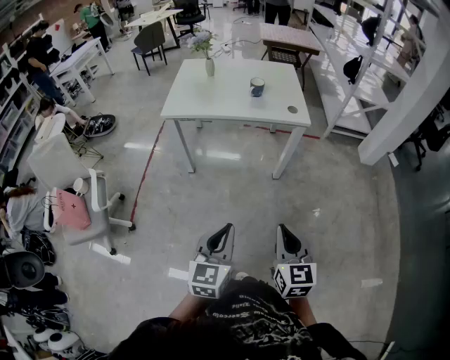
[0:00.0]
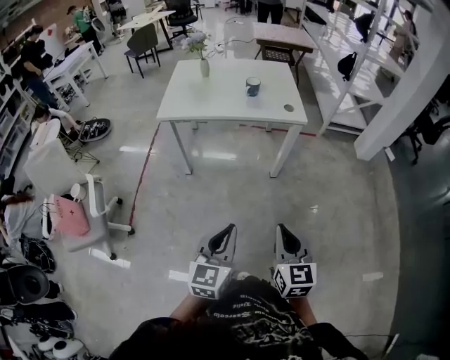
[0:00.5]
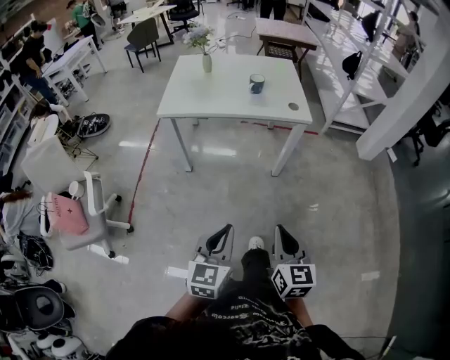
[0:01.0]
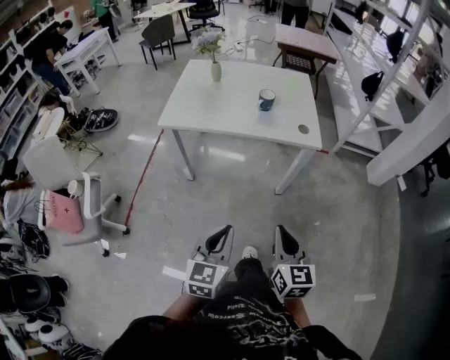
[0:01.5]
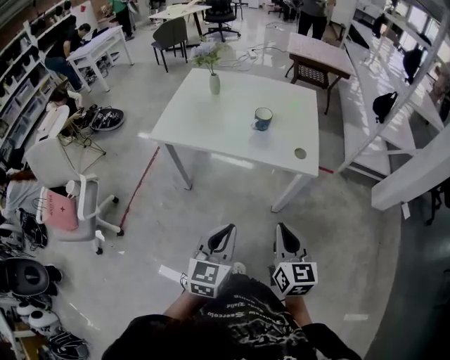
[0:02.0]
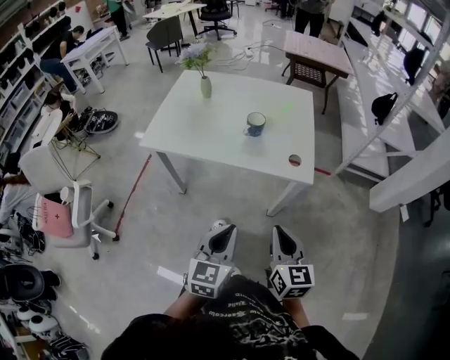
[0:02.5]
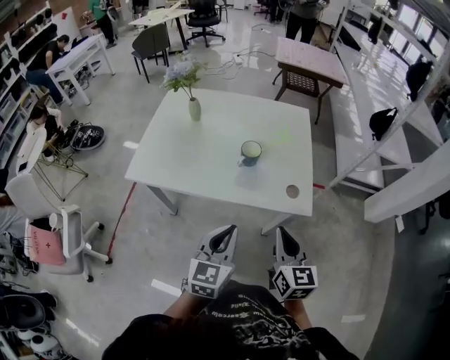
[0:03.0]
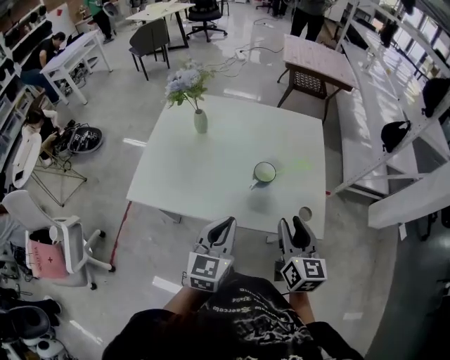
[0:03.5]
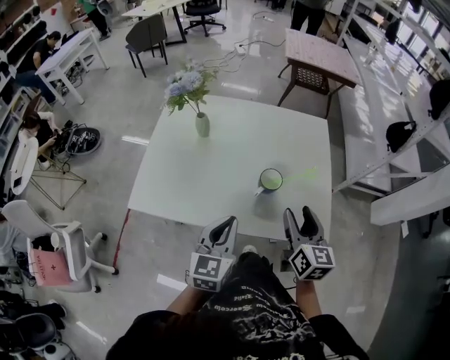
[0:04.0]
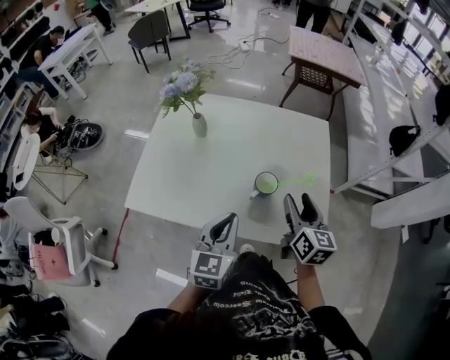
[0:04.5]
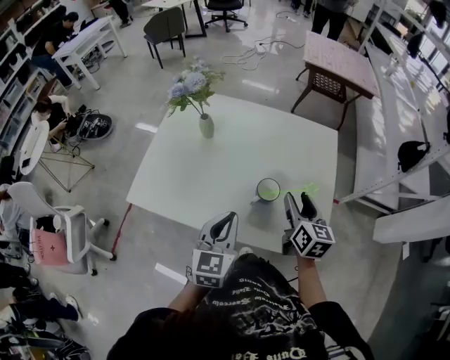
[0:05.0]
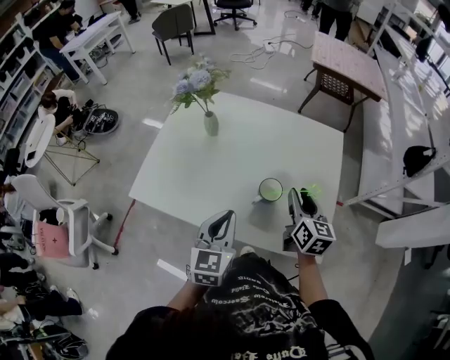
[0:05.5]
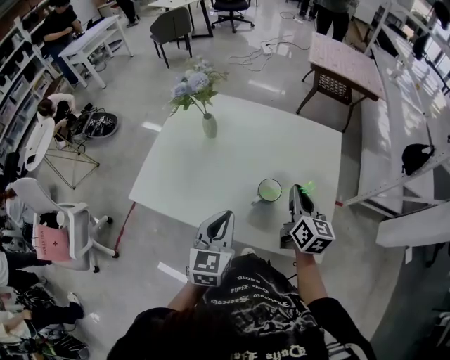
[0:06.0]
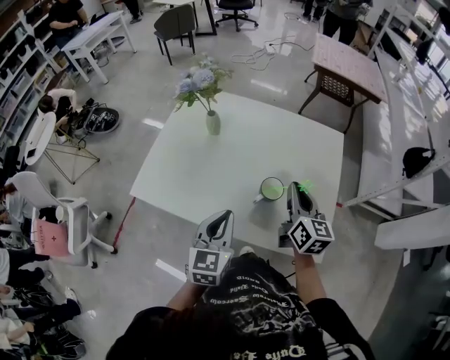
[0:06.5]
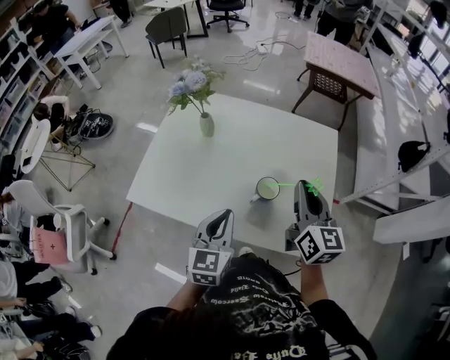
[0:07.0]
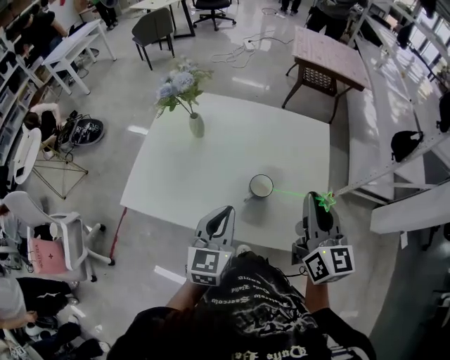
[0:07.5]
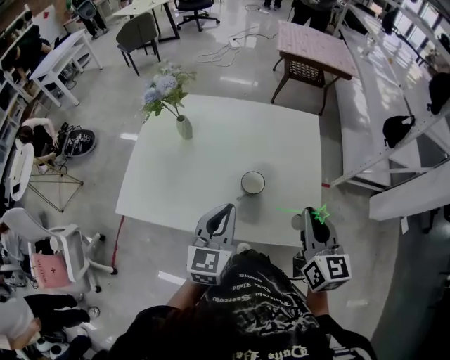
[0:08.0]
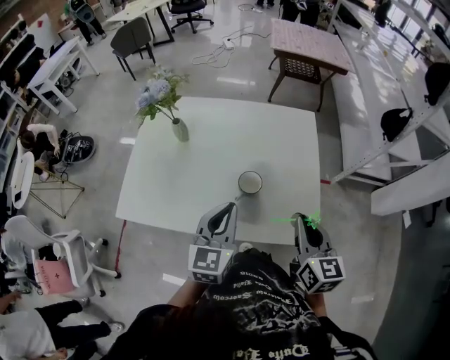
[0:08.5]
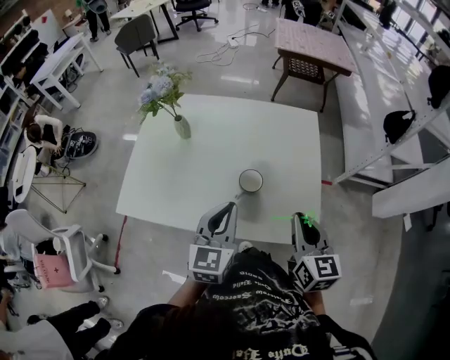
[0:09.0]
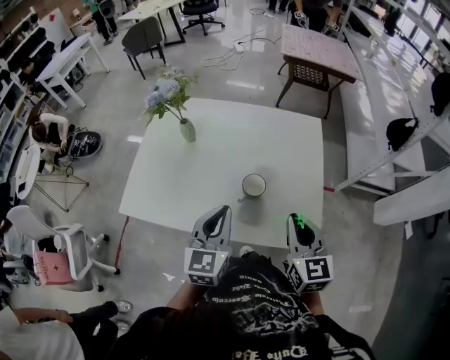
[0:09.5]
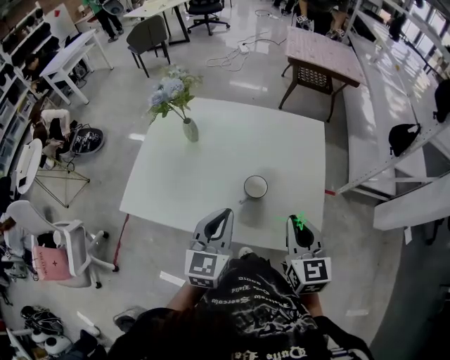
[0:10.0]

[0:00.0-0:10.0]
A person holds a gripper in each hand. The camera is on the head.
0:00.0 to 0:02.0: The pair of grippers is taken forward, some 50 cm.
0:02.0 to 0:04.0: The pair of grippers is taken forward, approximately 60 cm. The right gripper opens.
0:04.0 to 0:06.0: The right gripper shifts roughly 15 cm forward, and closes its fingers. The left gripper travels forward by roughly 5 cm.
0:06.0 to 0:08.0: The right gripper travels backward and upward by approximately 15 cm.
0:08.0 to 0:10.0: There are only small adjustments of the grippers.

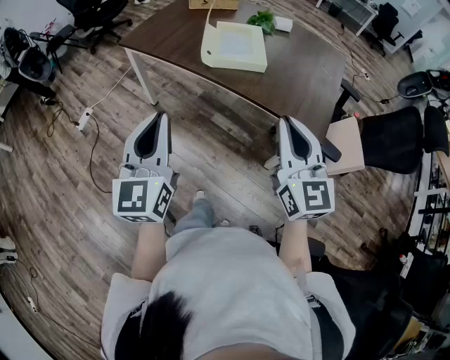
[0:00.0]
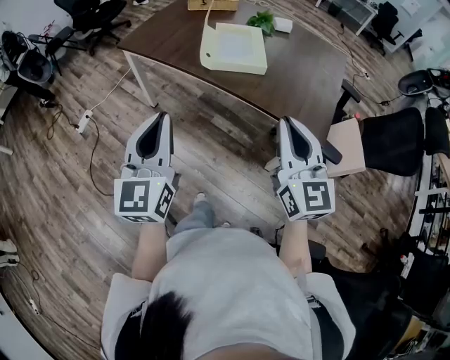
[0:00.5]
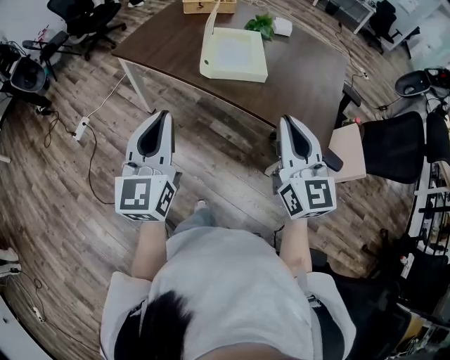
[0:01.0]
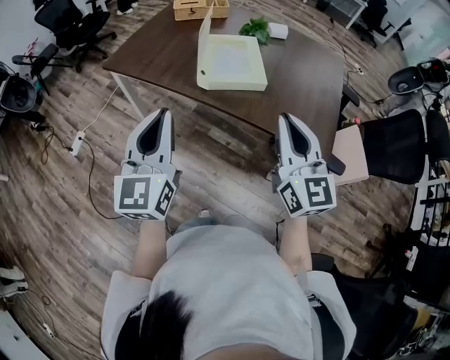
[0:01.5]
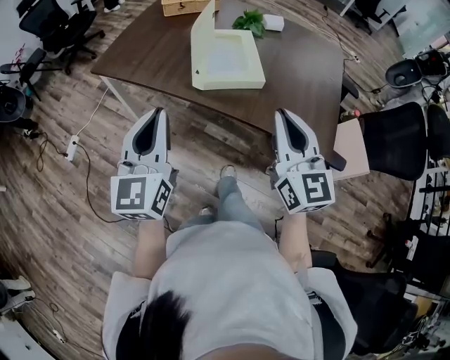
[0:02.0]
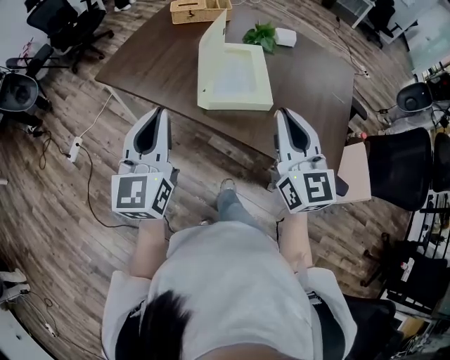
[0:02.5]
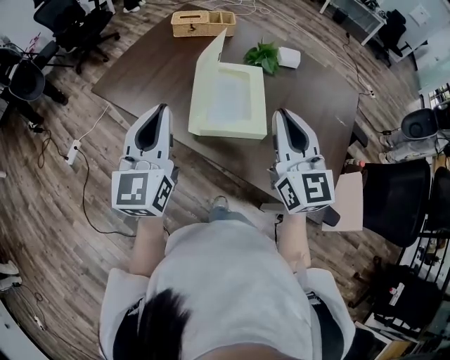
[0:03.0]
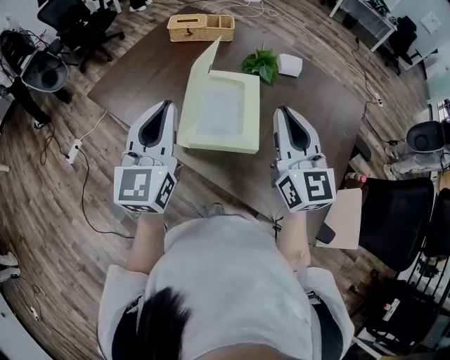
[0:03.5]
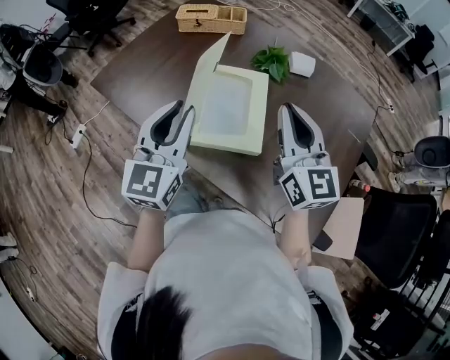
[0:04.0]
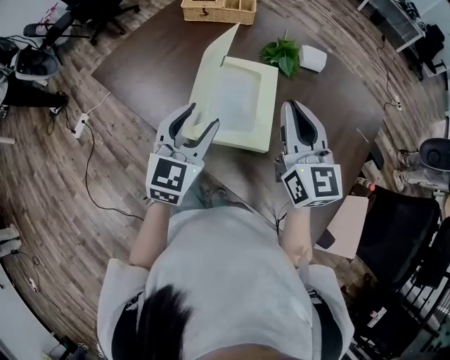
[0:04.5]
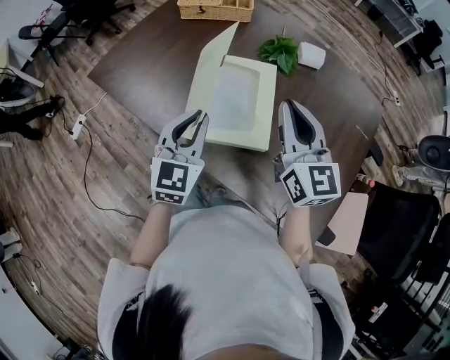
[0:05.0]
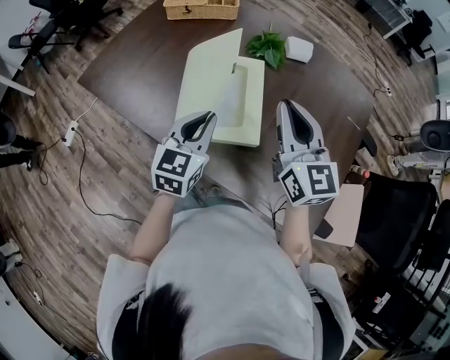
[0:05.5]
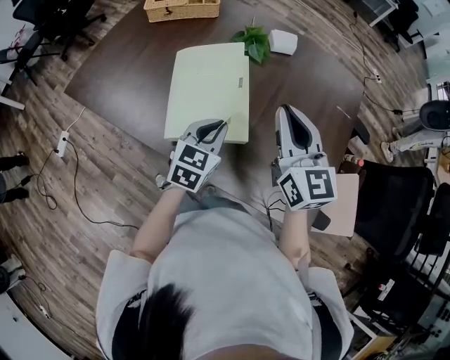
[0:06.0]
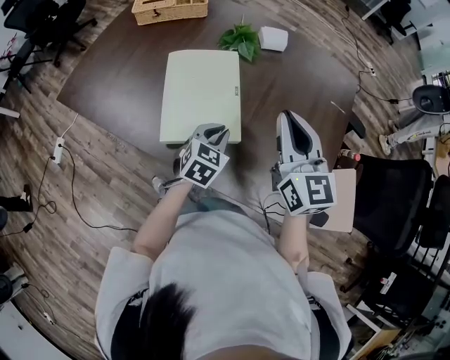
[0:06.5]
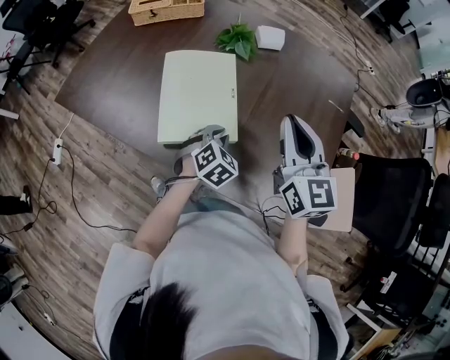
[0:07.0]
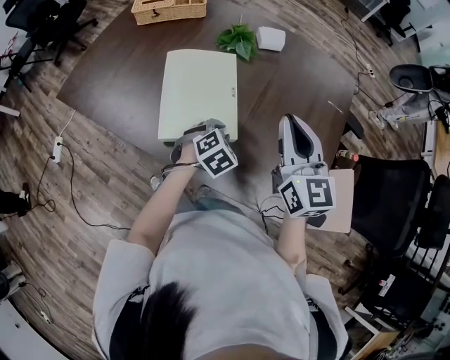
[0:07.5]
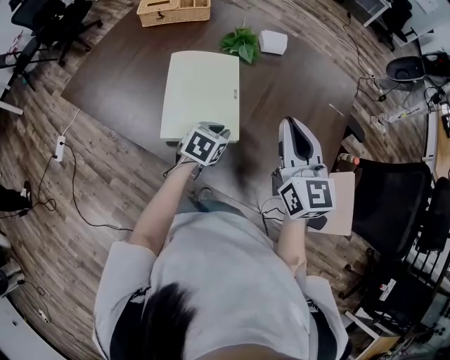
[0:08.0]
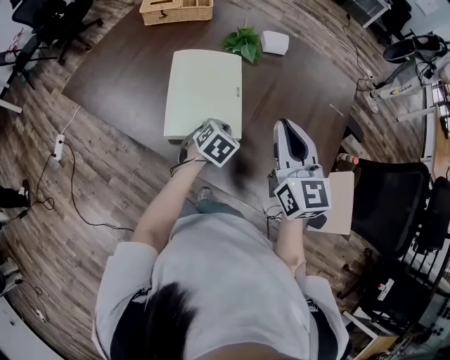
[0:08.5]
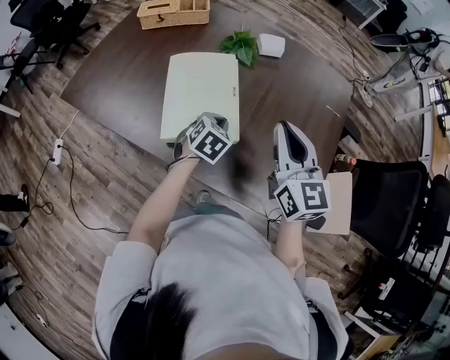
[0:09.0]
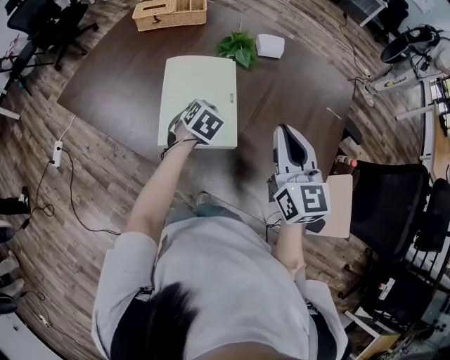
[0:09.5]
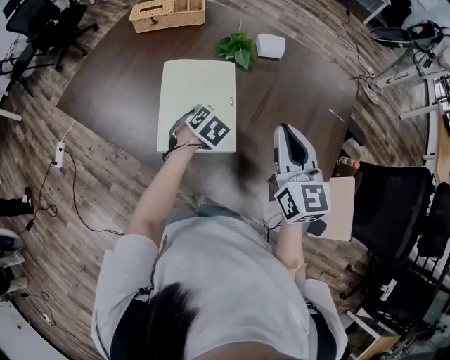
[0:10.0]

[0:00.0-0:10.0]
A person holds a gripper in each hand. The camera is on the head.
0:00.0 to 0:02.0: The two grippers go about 20 cm forward.
0:02.0 to 0:04.0: The right gripper heads forward, covering some 30 cm. Meanwhile the left gripper travels forward and to the right by some 30 cm.
0:04.0 to 0:06.0: The right gripper ends up roughly 5 cm from where it was. The left gripper heads downward and to the right, covering about 20 cm, turns by approximately 30 degrees, and opens and closes again.
0:06.0 to 0:08.0: The right gripper goes some 5 cm to the right, while the left gripper shifts about 10 cm downward, and turns by some 20 degrees.
0:08.0 to 0:10.0: The left gripper is displaced forward by about 10 cm, and turns by roughly 30 degrees.

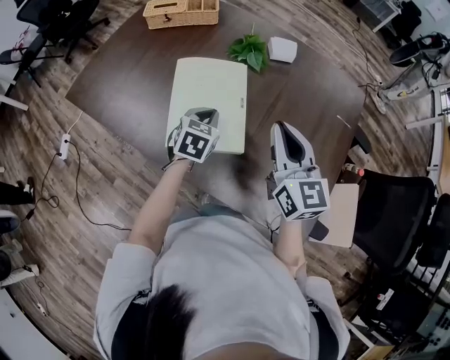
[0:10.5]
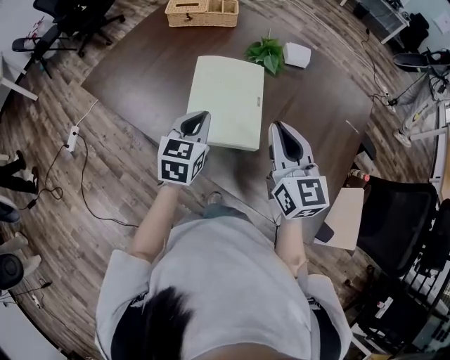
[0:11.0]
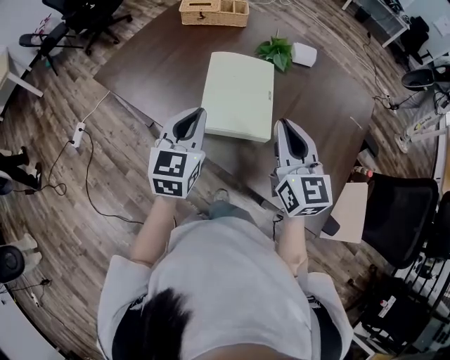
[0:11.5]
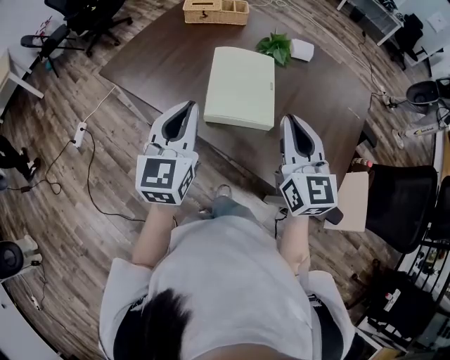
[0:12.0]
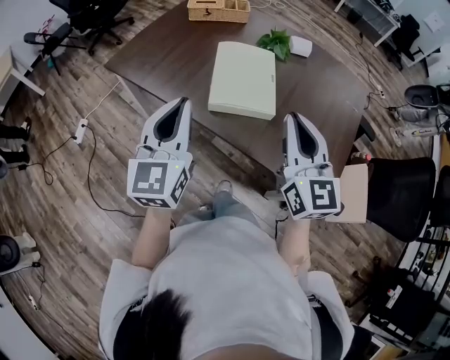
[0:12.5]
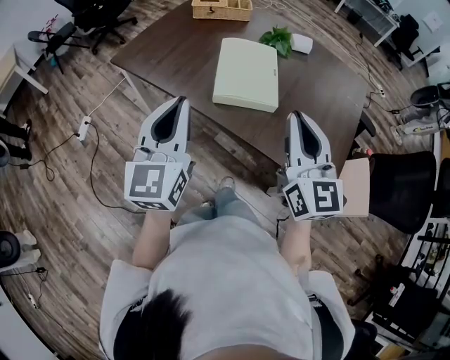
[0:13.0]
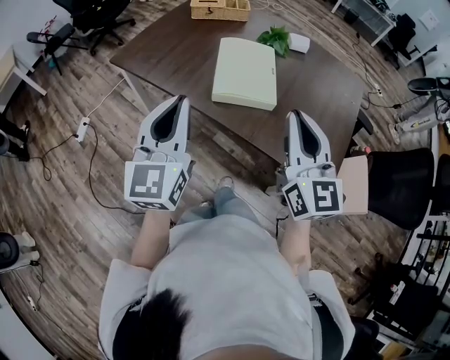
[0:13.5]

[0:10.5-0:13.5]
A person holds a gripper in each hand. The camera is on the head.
0:10.5 to 0:12.0: The right gripper moves backward, to the left and upward, some 15 cm. The left gripper shifts some 35 cm upward, backward and to the left, and angles its fingers upward, by roughly 40 degrees.
0:12.0 to 0:13.5: Both grippers move backward and upward, about 15 cm.

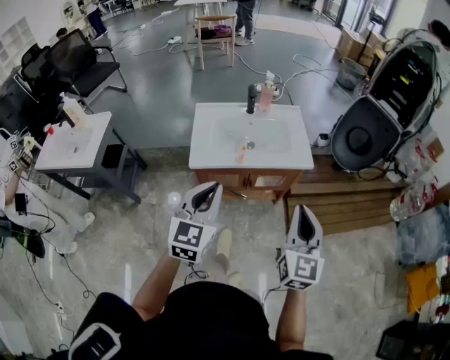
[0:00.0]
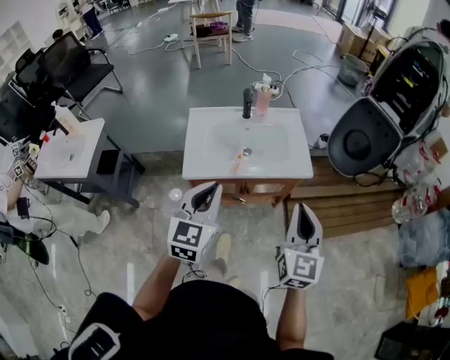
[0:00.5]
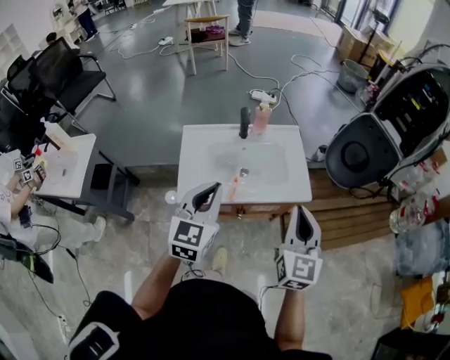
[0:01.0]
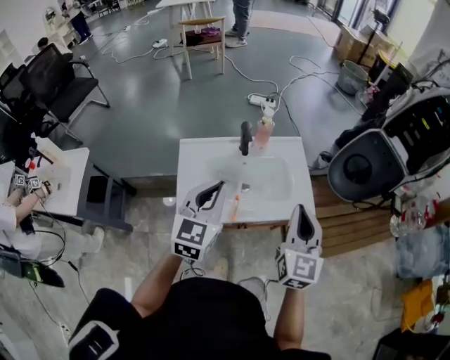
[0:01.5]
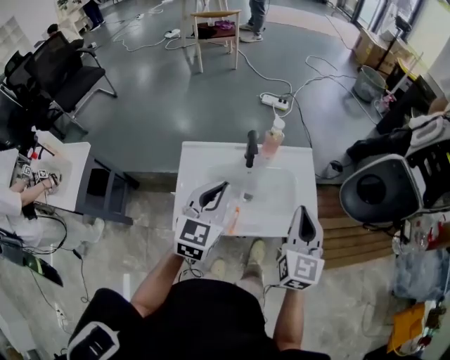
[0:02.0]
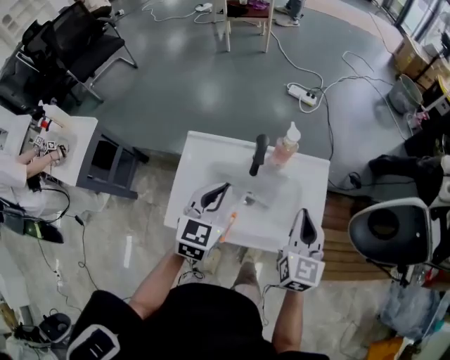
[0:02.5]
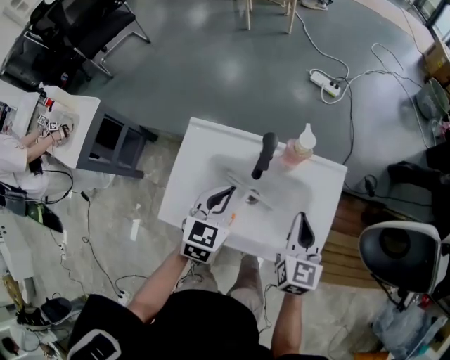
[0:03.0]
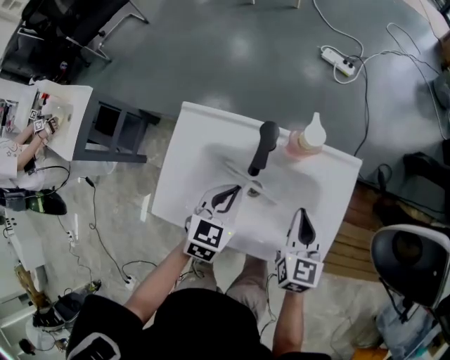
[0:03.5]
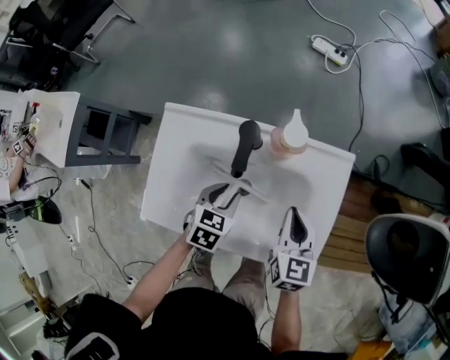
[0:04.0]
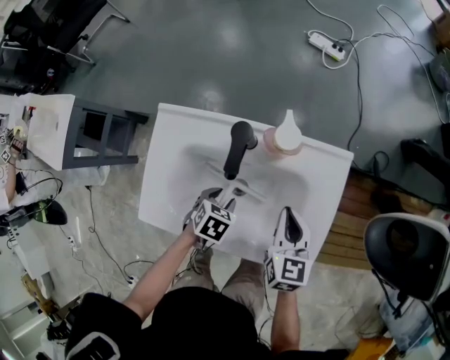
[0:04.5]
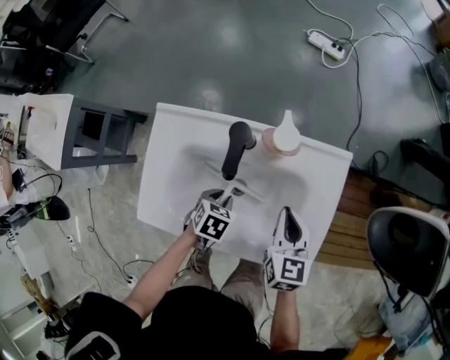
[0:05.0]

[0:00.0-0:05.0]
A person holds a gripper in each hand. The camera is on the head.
0:00.0 to 0:02.5: The two grippers travel together, forward, some 40 cm.
0:02.5 to 0:05.0: The left gripper moves downward, about 30 cm, tips its fingers downward by some 50 degrees, and opens up. The right gripper travels downward by some 20 cm, and rotates about 20 degrees.
